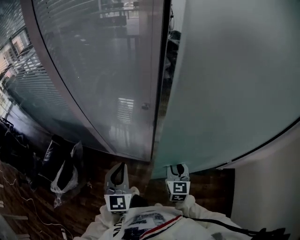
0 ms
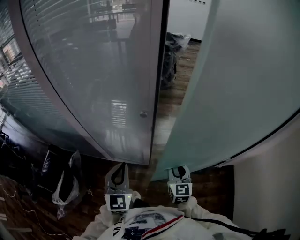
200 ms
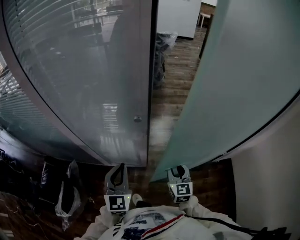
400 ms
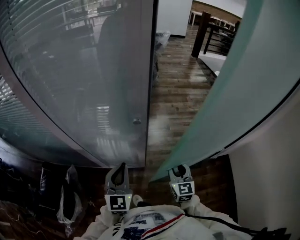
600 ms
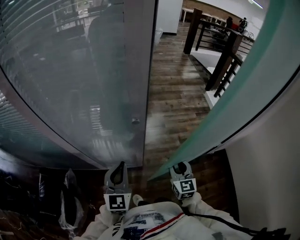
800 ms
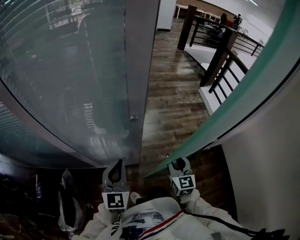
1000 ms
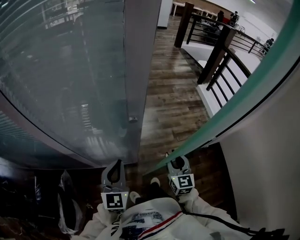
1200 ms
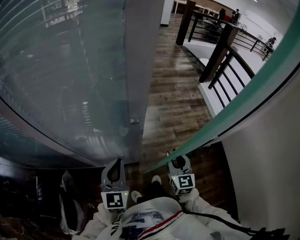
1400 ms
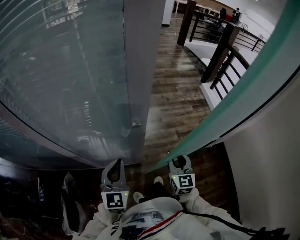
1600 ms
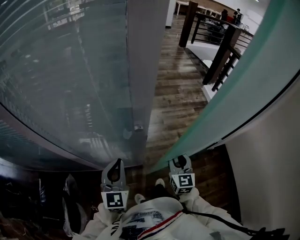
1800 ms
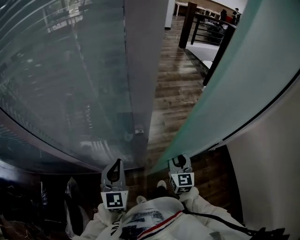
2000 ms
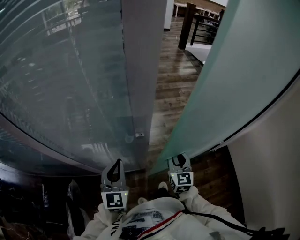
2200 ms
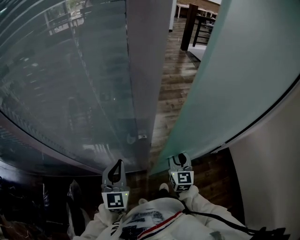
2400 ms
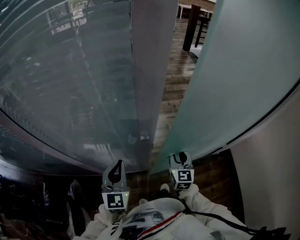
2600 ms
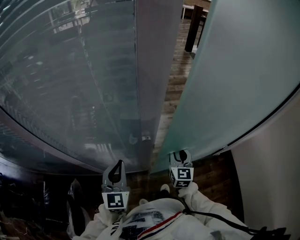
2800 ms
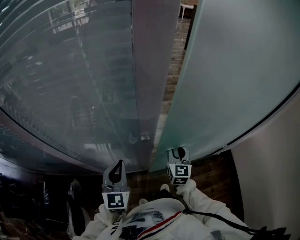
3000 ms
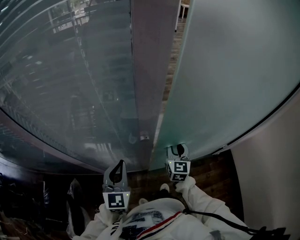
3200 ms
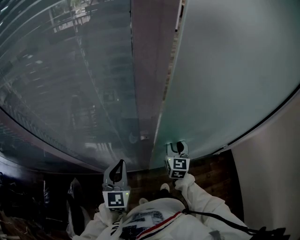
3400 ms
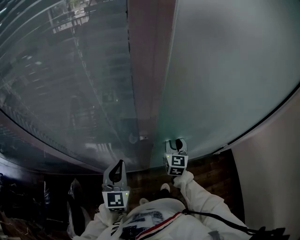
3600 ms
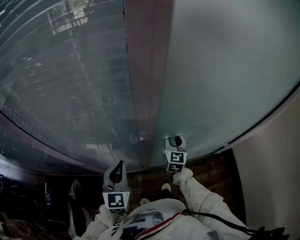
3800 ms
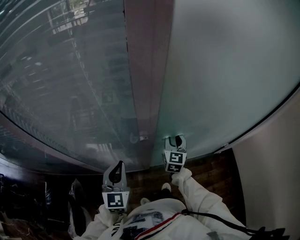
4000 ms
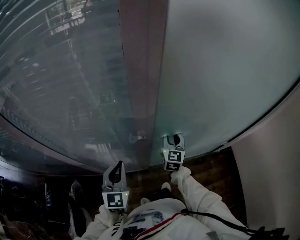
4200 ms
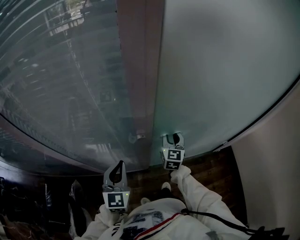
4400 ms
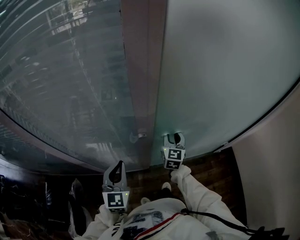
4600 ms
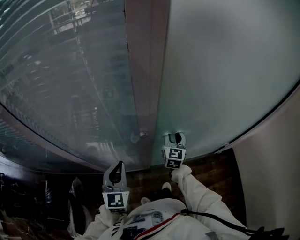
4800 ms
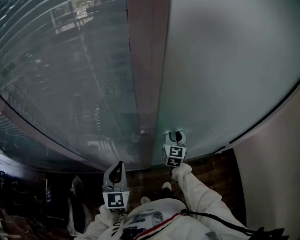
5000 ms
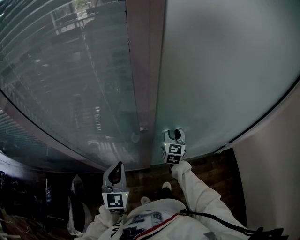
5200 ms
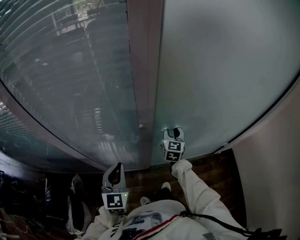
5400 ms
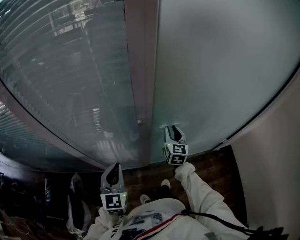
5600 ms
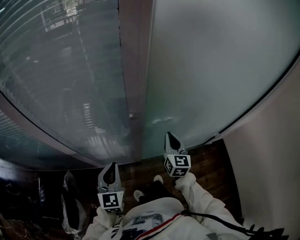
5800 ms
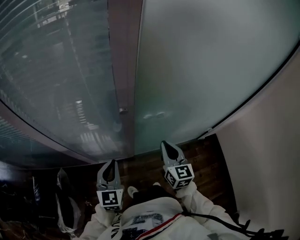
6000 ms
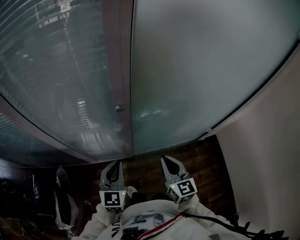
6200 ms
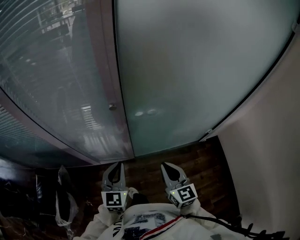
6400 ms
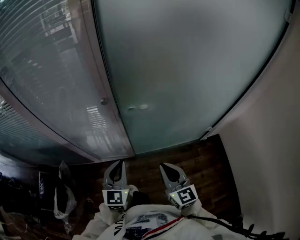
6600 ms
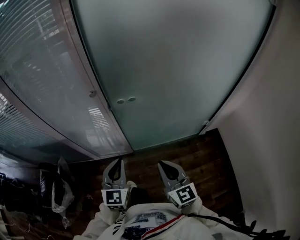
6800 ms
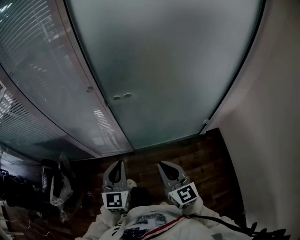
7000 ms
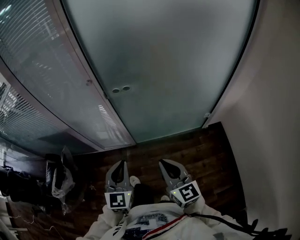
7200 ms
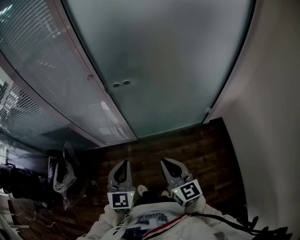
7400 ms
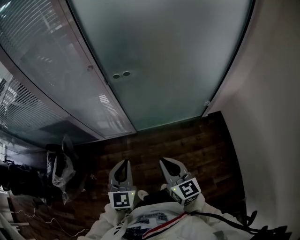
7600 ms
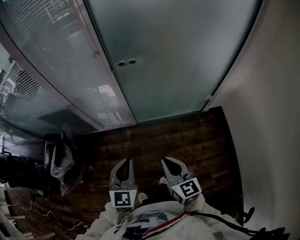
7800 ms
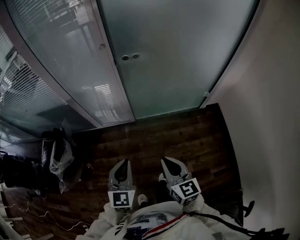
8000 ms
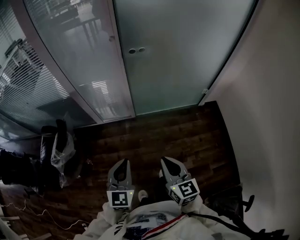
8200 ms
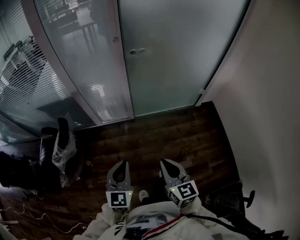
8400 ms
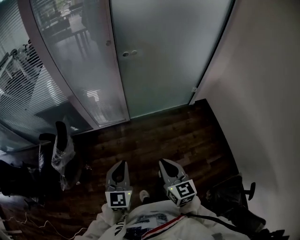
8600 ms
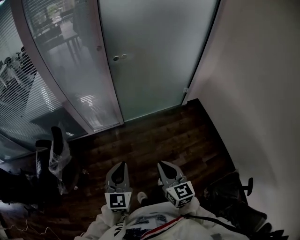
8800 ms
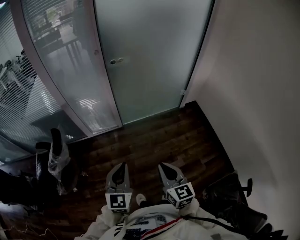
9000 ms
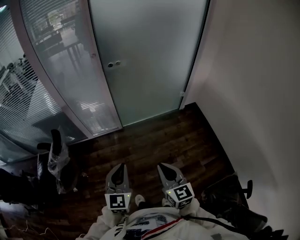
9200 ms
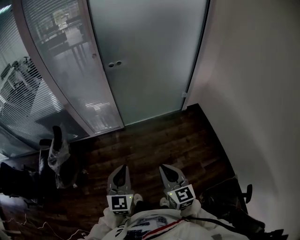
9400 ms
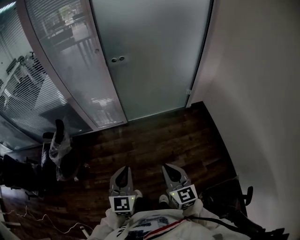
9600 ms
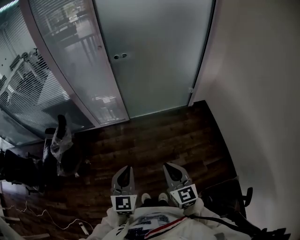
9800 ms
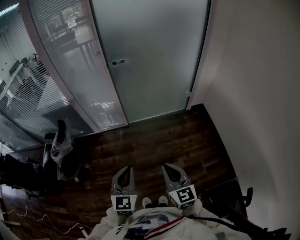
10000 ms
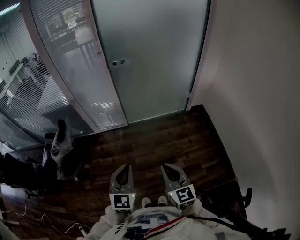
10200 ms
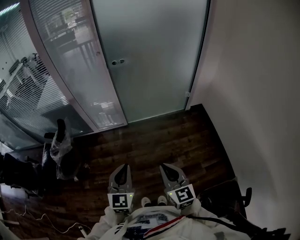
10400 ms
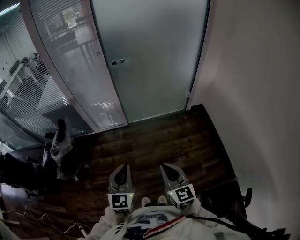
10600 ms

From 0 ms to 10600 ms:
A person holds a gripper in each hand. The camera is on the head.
From 0 ms to 1600 ms: The left gripper shifts roughly 15 cm forward, and turns by approximately 20 degrees. The right gripper shifts about 5 cm forward.
From 1600 ms to 3000 ms: The right gripper shifts approximately 10 cm forward.
From 3000 ms to 4600 ms: The right gripper goes about 5 cm forward.
From 4600 ms to 6000 ms: The left gripper heads backward, covering approximately 5 cm; the right gripper heads backward, covering roughly 20 cm.
From 6000 ms to 7600 ms: The left gripper is displaced backward and to the right by approximately 35 cm. Meanwhile the right gripper is displaced backward by about 35 cm.
From 7600 ms to 9000 ms: Both grippers move backward, approximately 25 cm.
From 9000 ms to 10600 ms: The two grippers go roughly 10 cm to the right and backward.

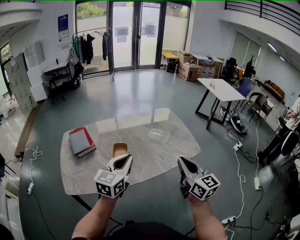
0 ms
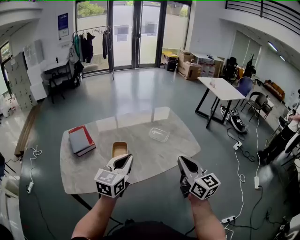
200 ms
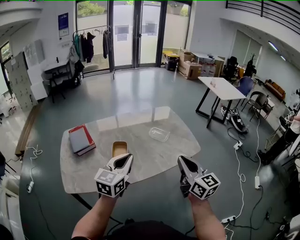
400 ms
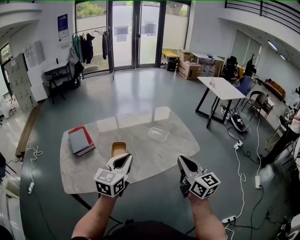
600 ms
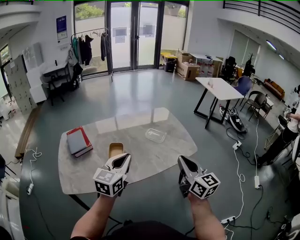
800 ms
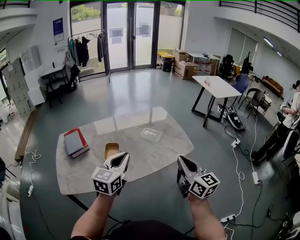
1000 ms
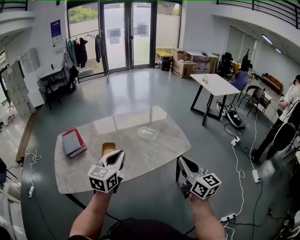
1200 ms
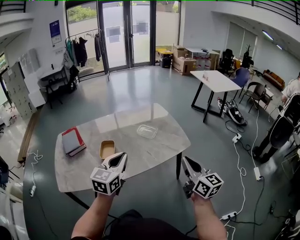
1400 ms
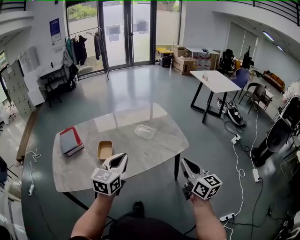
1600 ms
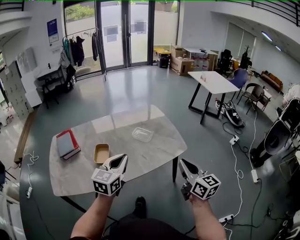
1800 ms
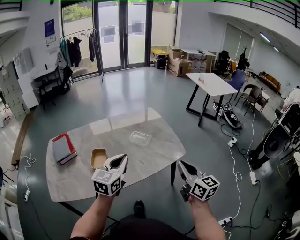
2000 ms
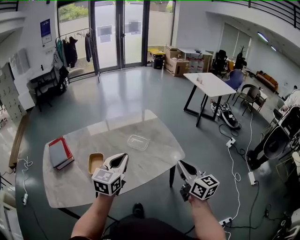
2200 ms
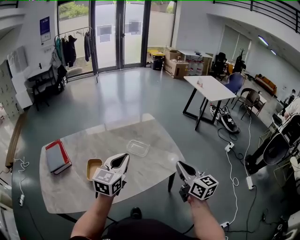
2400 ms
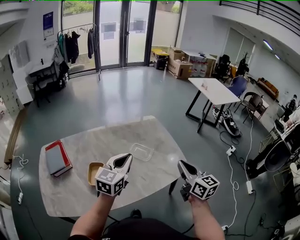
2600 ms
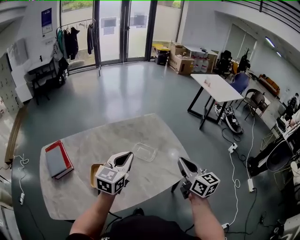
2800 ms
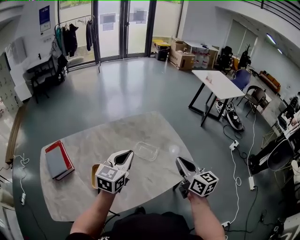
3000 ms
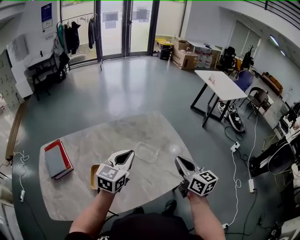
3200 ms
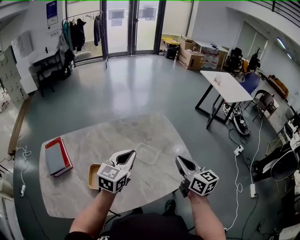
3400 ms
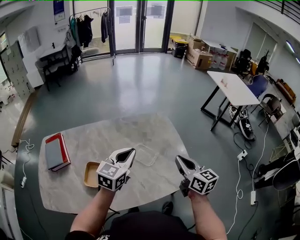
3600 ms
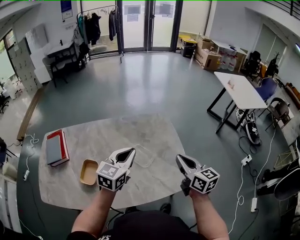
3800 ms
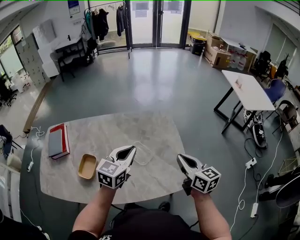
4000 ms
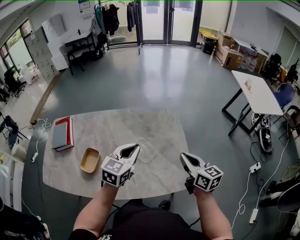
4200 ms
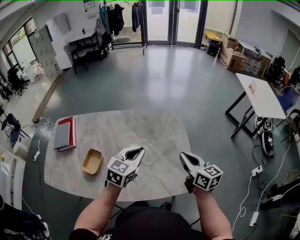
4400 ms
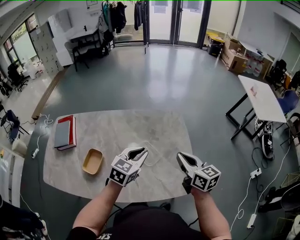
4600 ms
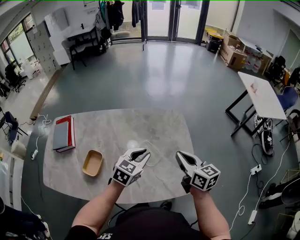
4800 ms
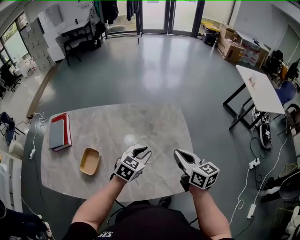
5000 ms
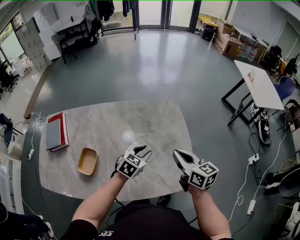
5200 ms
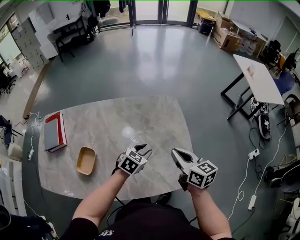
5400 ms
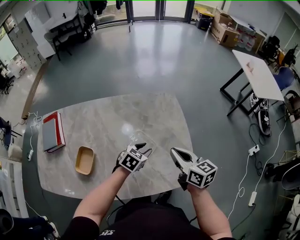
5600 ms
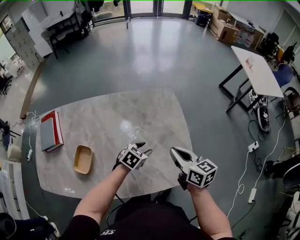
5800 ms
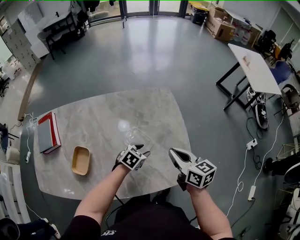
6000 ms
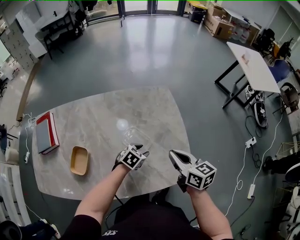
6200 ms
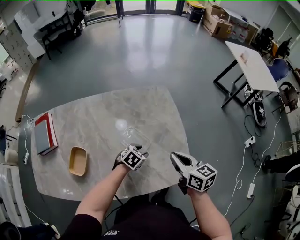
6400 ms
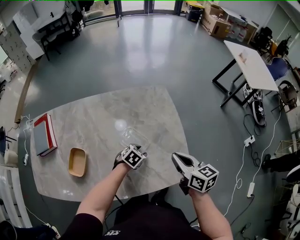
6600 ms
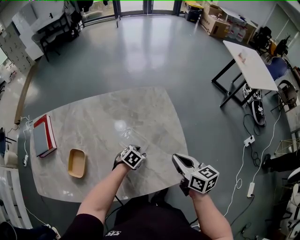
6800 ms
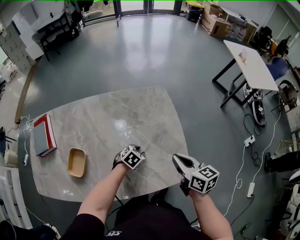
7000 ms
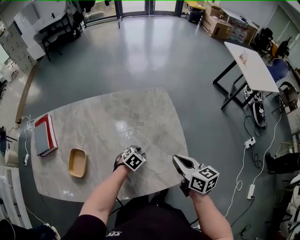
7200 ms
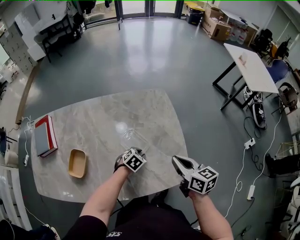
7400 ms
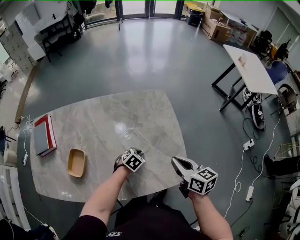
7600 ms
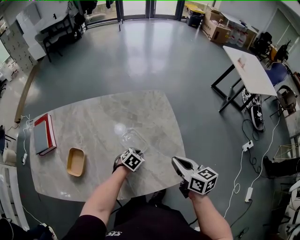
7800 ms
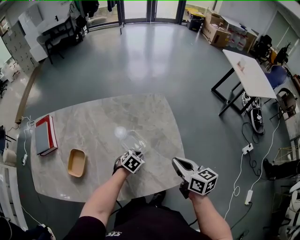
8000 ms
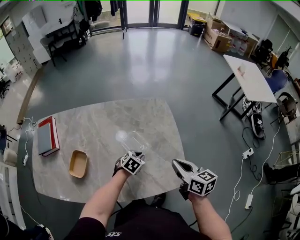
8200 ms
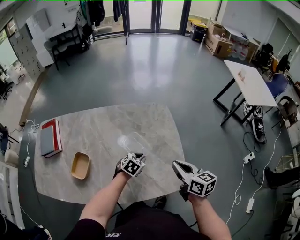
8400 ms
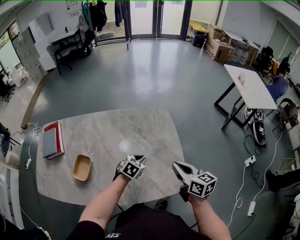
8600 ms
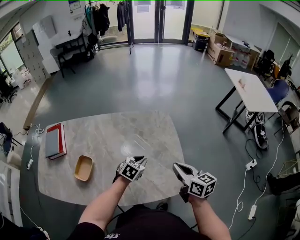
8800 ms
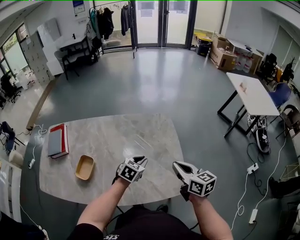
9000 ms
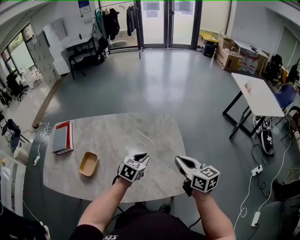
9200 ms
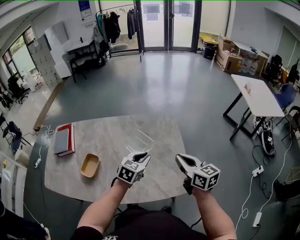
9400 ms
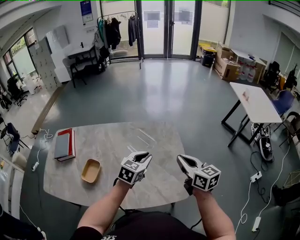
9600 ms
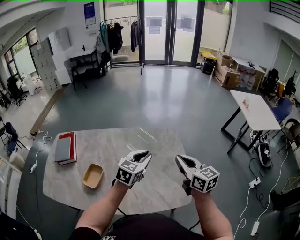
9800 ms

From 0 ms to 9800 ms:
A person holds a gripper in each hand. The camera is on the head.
From 0 ms to 1400 ms: The right gripper moves to the right, some 15 cm, while the left gripper shifts some 10 cm to the right.
From 1400 ms to 2800 ms: The grippers both shift forward by about 25 cm.
From 2800 ms to 4200 ms: The left gripper heads to the right and forward, covering some 15 cm, while the right gripper is displaced forward, to the right and downward by roughly 20 cm, and changes its angle by some 30 degrees.
From 4200 ms to 5600 ms: The right gripper heads to the left, covering about 5 cm; the left gripper shifts some 20 cm downward, swivels some 30 degrees, and opens.
From 5600 ms to 7000 ms: The left gripper goes approximately 10 cm downward, while the right gripper shifts by about 5 cm.
From 7000 ms to 8400 ms: The left gripper travels upward by approximately 5 cm.
From 8400 ms to 9800 ms: The right gripper goes some 10 cm upward and forward. The left gripper moves upward, approximately 25 cm, and changes its angle by about 30 degrees.

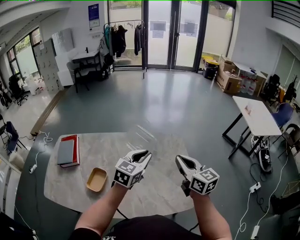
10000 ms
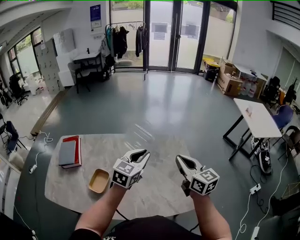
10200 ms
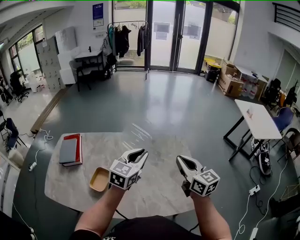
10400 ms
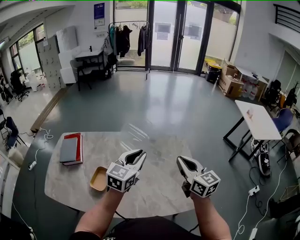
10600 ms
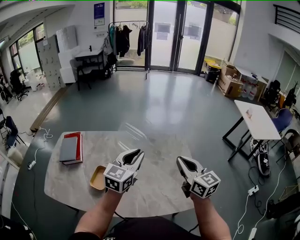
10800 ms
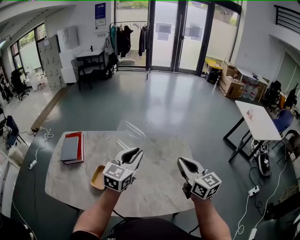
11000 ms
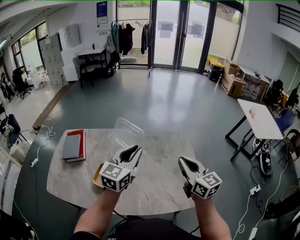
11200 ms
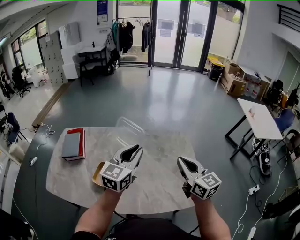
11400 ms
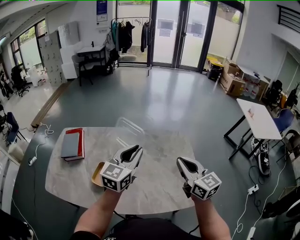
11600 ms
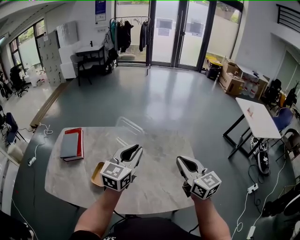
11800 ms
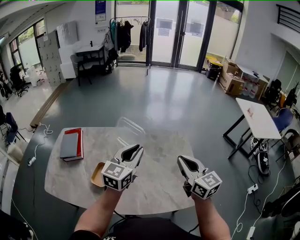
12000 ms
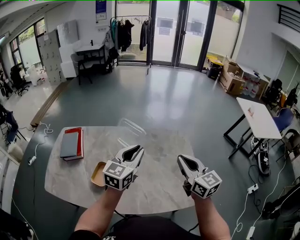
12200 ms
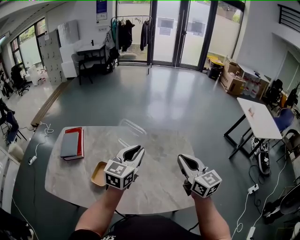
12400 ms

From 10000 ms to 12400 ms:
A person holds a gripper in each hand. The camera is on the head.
From 10000 ms to 11200 ms: The left gripper moves to the left and upward, about 10 cm. Meanwhile the right gripper ends up about 5 cm from where it was.
From 11200 ms to 12400 ms: There are only small adjustments of the grippers.
